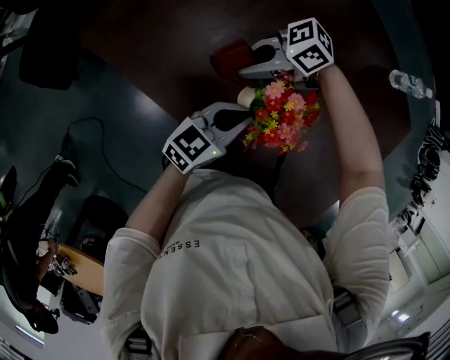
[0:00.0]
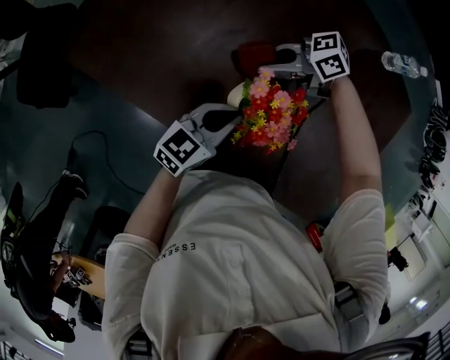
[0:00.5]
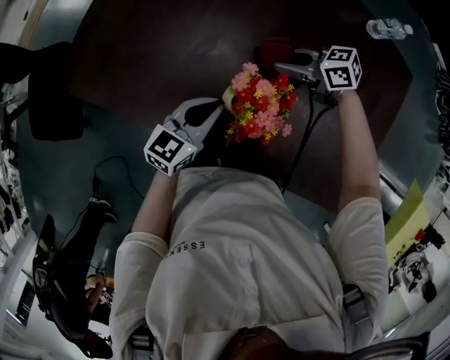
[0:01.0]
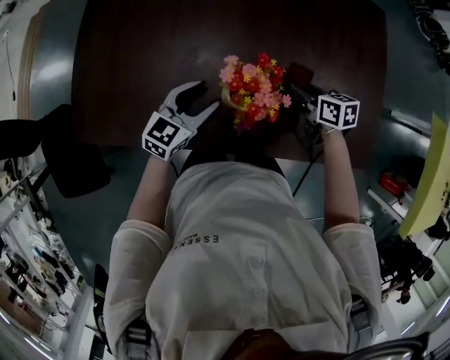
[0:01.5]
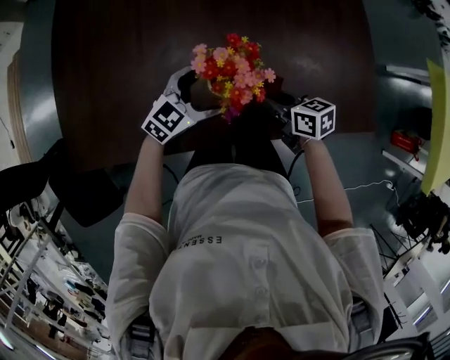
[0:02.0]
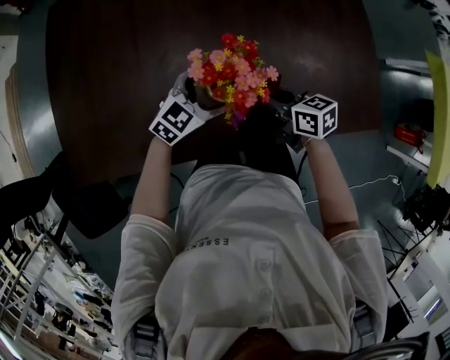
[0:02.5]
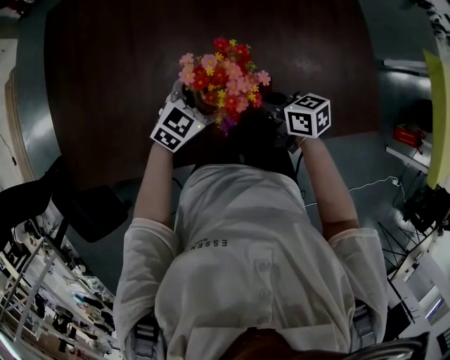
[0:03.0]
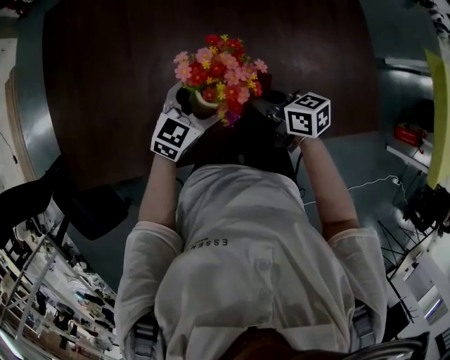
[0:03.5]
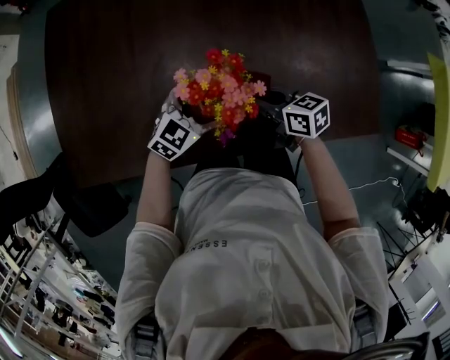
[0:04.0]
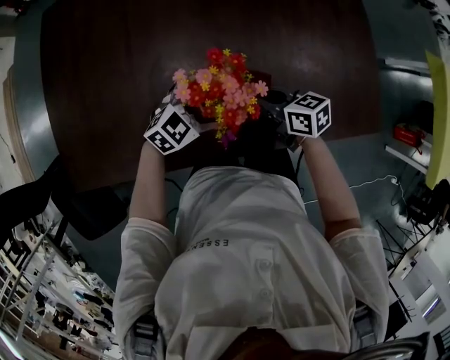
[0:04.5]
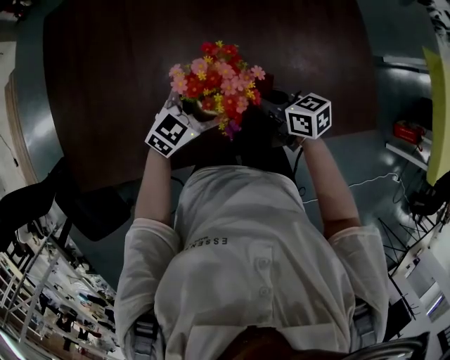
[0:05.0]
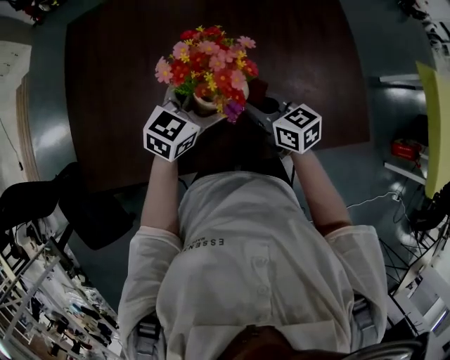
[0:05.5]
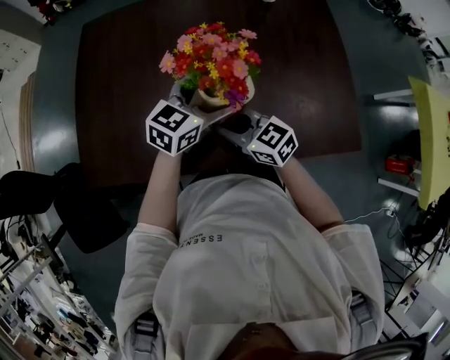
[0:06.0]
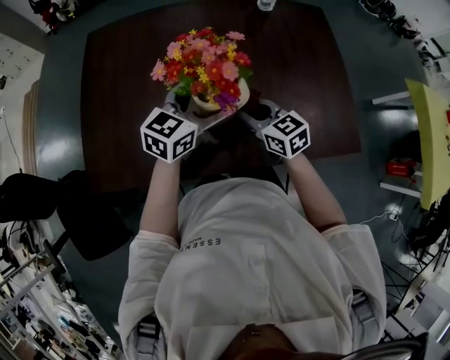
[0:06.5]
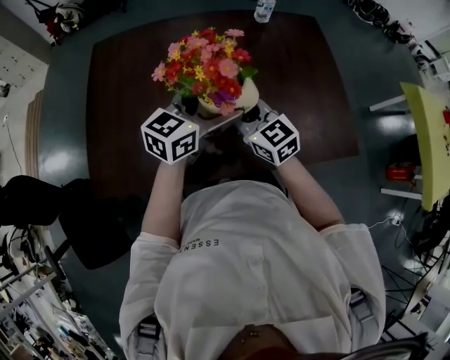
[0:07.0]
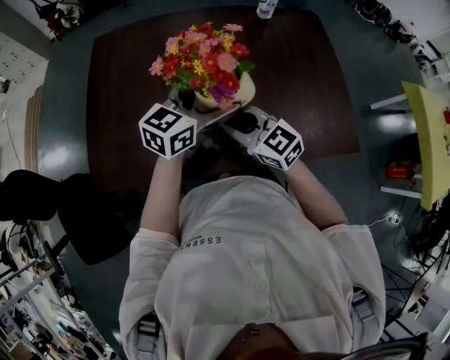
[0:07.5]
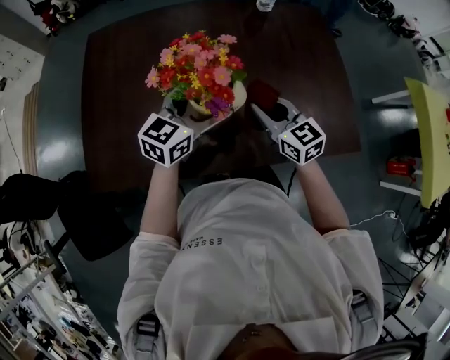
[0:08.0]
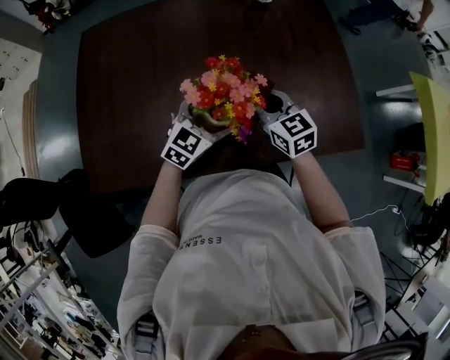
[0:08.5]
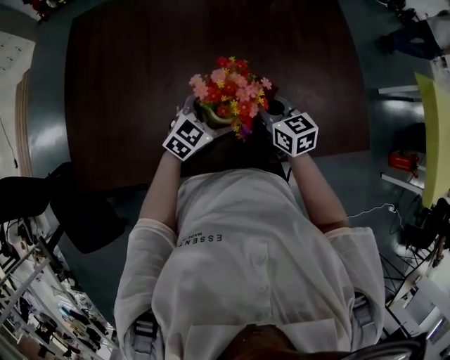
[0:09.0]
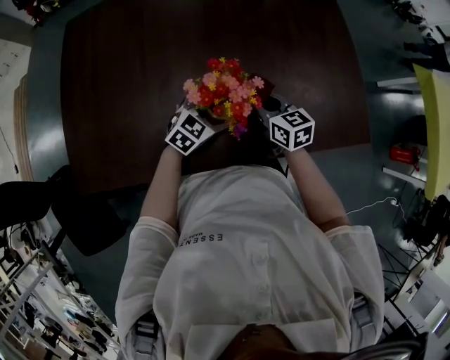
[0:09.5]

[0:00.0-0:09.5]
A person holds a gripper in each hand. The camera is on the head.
0:00.0 to 0:02.0: The right gripper moves some 20 cm, and swivels roughly 100 degrees; the left gripper turns by about 60 degrees, and opens its fingers.
0:02.0 to 0:04.0: The grippers move only a little.
0:04.0 to 0:05.5: The right gripper travels upward by some 10 cm. Meanwhile the left gripper is displaced upward by some 15 cm.
0:05.5 to 0:07.5: The right gripper is displaced upward, to the left and backward by some 15 cm, and changes its angle by approximately 30 degrees. Meanwhile the left gripper moves upward, about 10 cm.
0:07.5 to 0:09.5: The left gripper moves downward, about 25 cm, and rotates about 30 degrees. The right gripper moves downward, to the right and forward, roughly 20 cm, and rotates some 40 degrees.

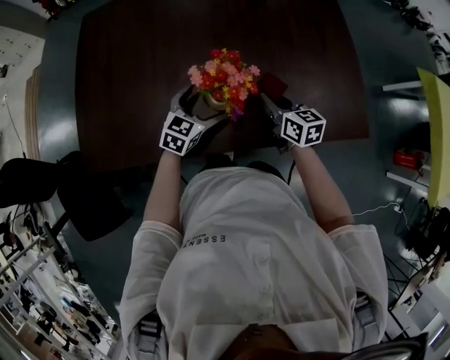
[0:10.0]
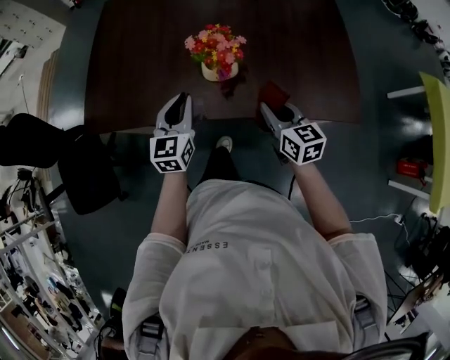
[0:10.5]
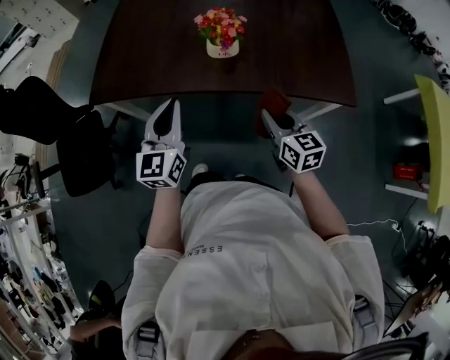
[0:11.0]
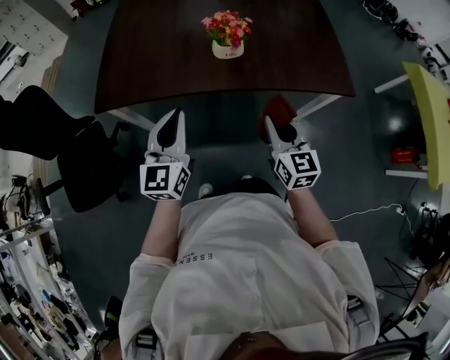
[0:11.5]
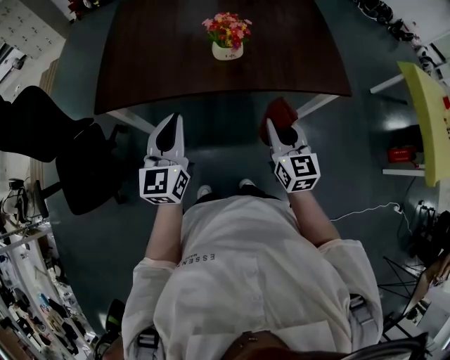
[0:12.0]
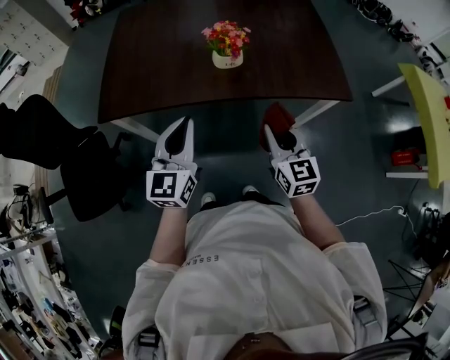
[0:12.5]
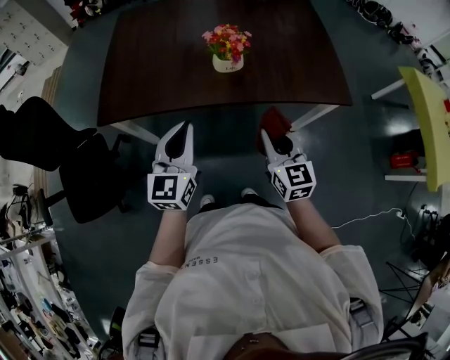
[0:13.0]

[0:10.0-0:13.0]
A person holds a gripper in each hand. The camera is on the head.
0:10.0 to 0:11.5: The left gripper heads backward, upward and to the left, covering approximately 40 cm, changes its angle by about 40 degrees, and closes up. Meanwhile the right gripper travels backward by approximately 35 cm, and swivels some 30 degrees.
0:11.5 to 0:13.0: There are only small adjustments of the grippers.

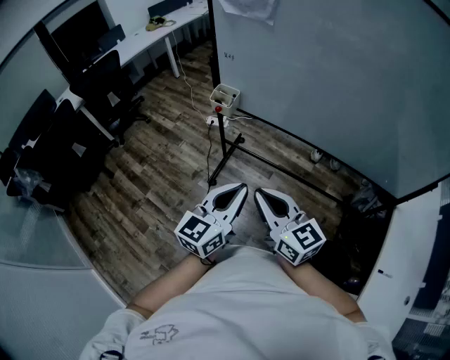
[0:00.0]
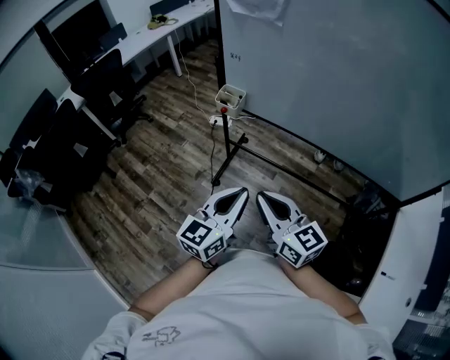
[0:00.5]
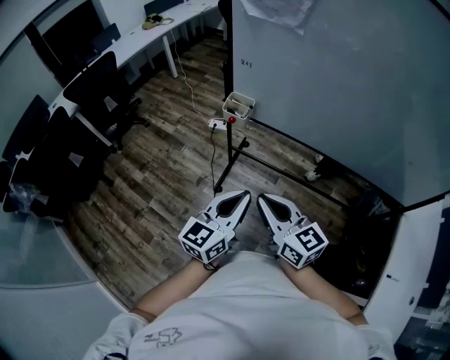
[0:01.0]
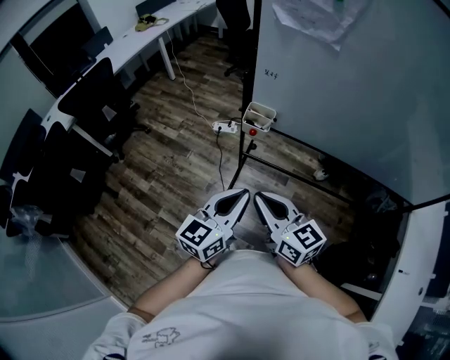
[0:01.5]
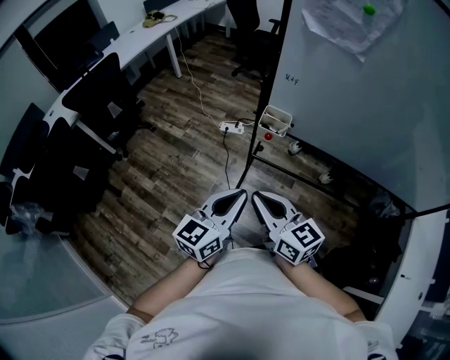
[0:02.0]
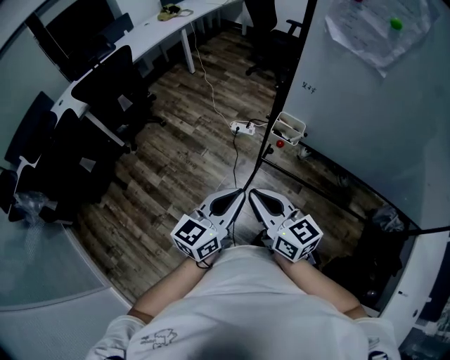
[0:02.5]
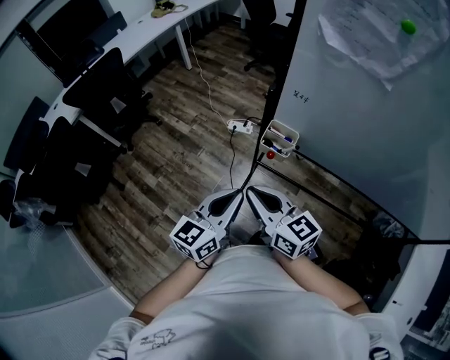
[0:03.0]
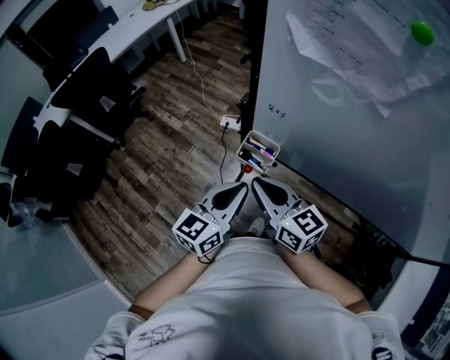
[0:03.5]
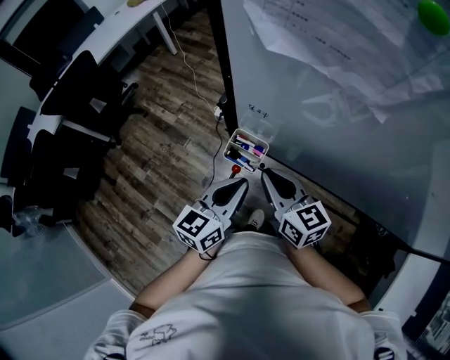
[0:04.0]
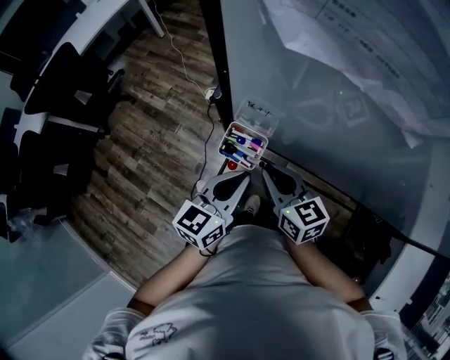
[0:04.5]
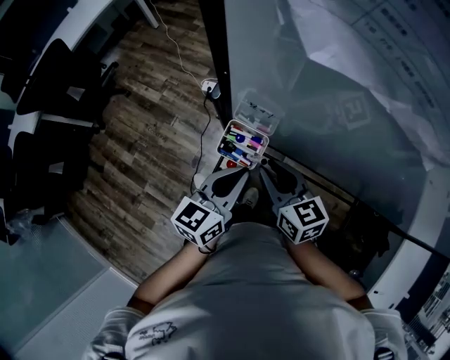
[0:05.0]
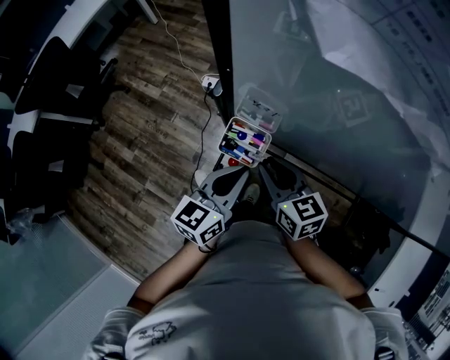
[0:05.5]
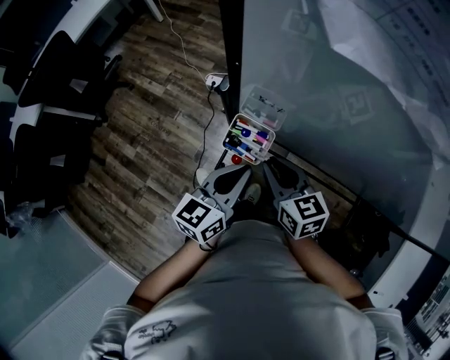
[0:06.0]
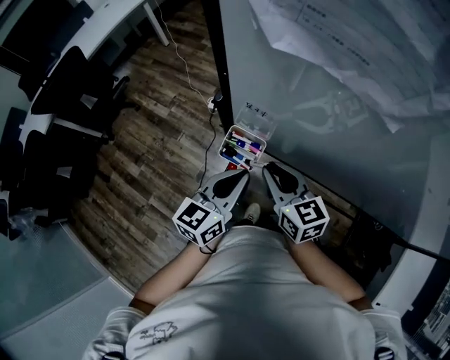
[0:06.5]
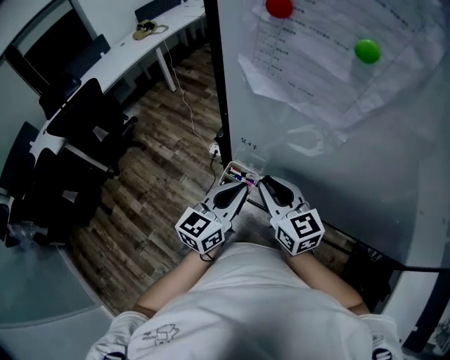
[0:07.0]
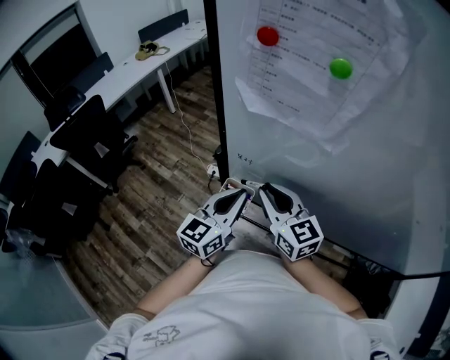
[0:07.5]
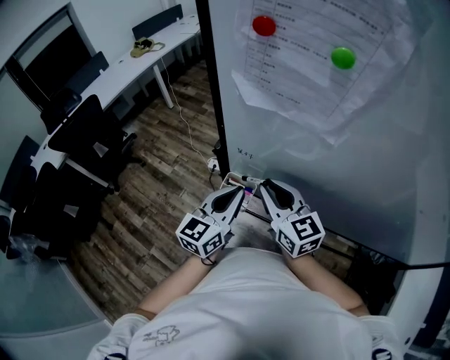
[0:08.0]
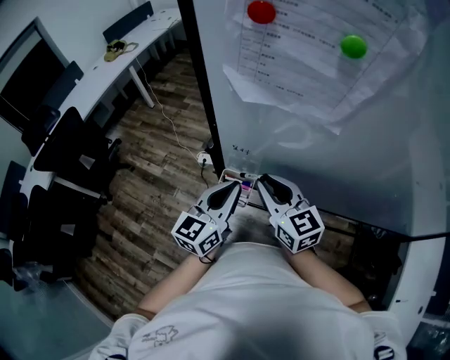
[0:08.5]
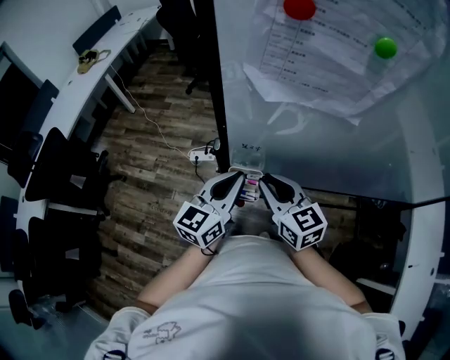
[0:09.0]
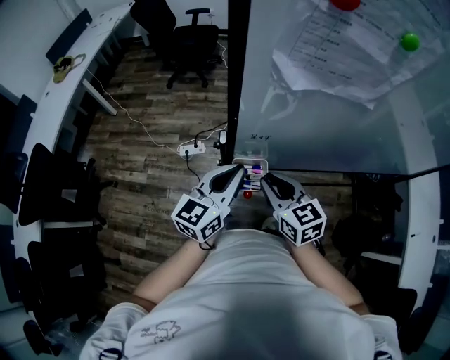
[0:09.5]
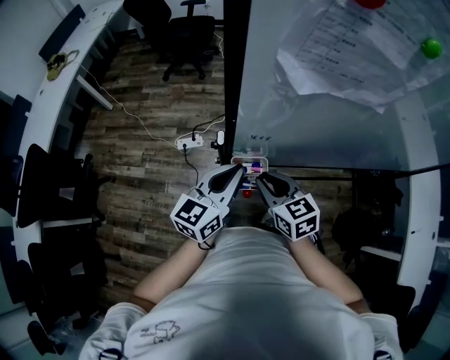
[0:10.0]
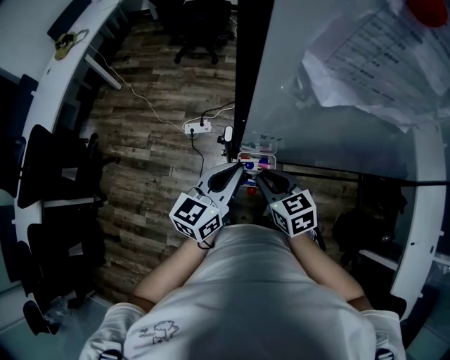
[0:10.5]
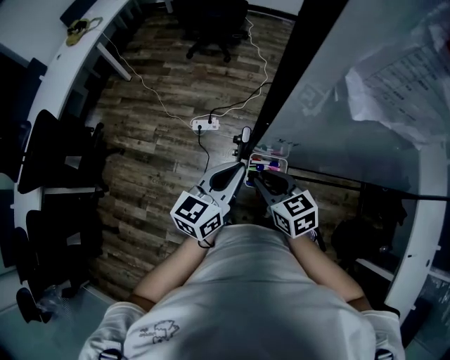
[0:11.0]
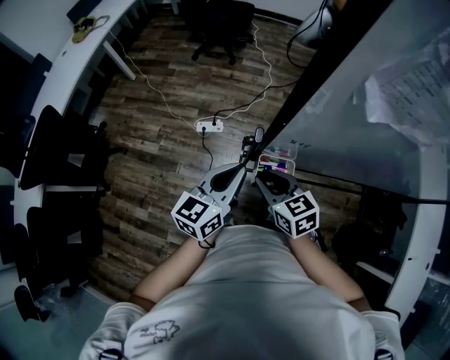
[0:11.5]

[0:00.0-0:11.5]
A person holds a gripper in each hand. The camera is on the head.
0:00.0 to 0:02.0: Both grippers travel together to the left and forward, roughly 30 cm.
0:02.0 to 0:04.0: Both grippers travel together forward and to the right, approximately 30 cm.
0:04.0 to 0:06.0: The left gripper ends up approximately 5 cm from where it was, while the right gripper shifts about 10 cm downward.
0:06.0 to 0:07.5: The two grippers go approximately 15 cm upward. The right gripper turns by approximately 30 degrees. The left gripper changes its angle by approximately 20 degrees.
0:07.5 to 0:09.5: The left gripper goes some 10 cm to the left, and turns by about 30 degrees, while the right gripper shifts approximately 10 cm downward and to the left, and turns by roughly 30 degrees.
0:09.5 to 0:11.5: The left gripper goes about 5 cm to the left; the right gripper moves to the left and downward, roughly 10 cm.

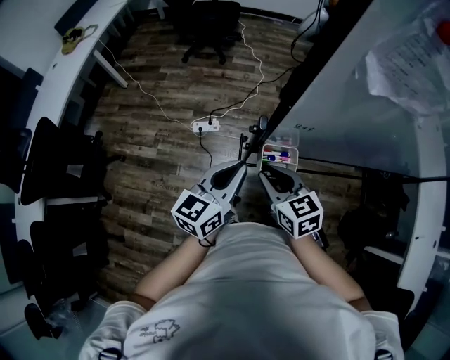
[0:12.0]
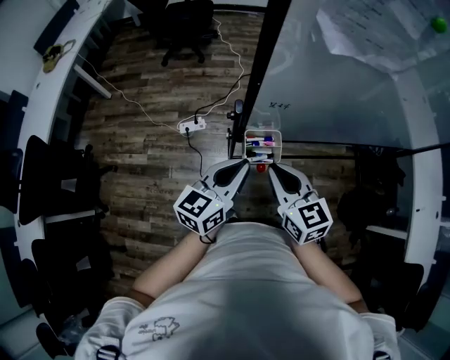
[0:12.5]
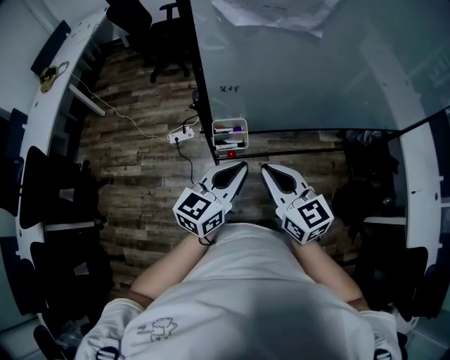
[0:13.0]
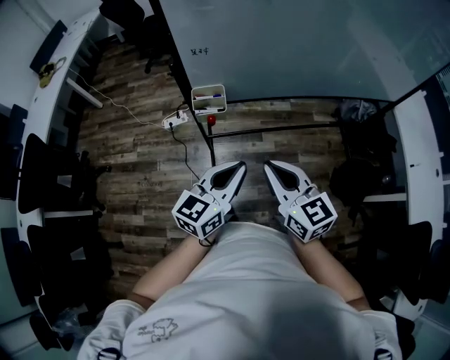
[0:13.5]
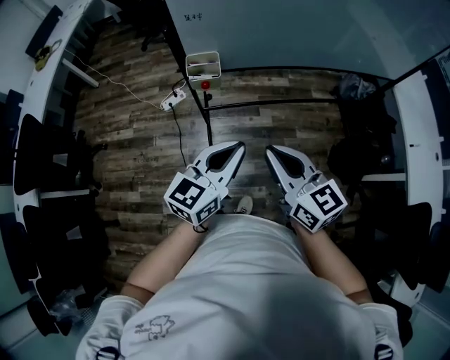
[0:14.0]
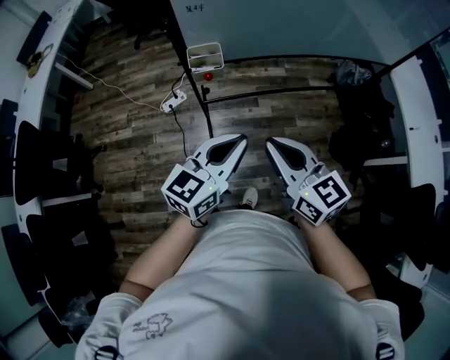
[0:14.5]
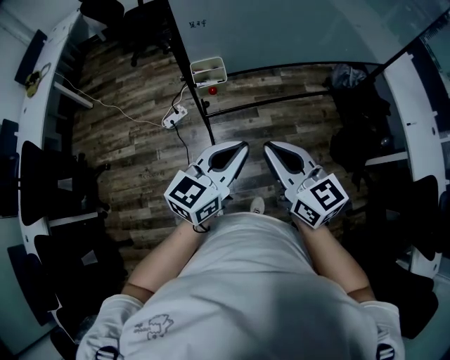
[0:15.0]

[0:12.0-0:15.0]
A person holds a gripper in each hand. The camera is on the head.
0:12.0 to 0:13.5: The two grippers go approximately 30 cm backward and to the right. The right gripper rotates about 20 degrees.
0:13.5 to 0:15.0: The left gripper goes about 5 cm backward. Meanwhile the right gripper moves backward and to the left, approximately 10 cm.
